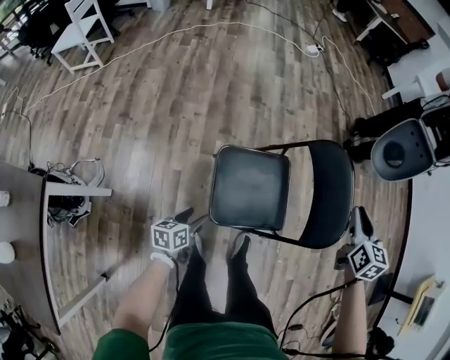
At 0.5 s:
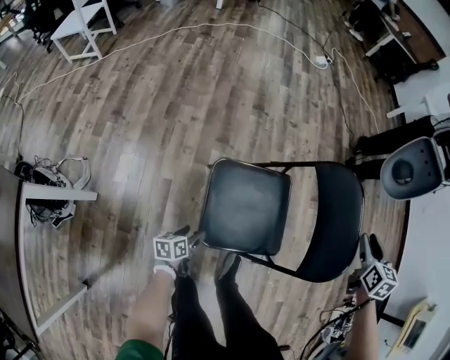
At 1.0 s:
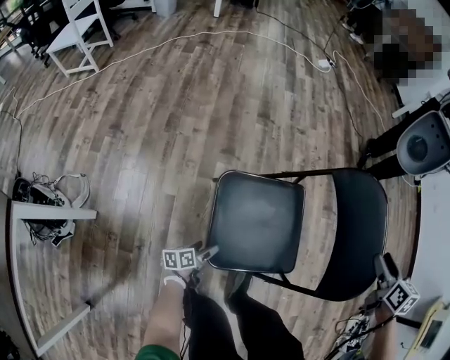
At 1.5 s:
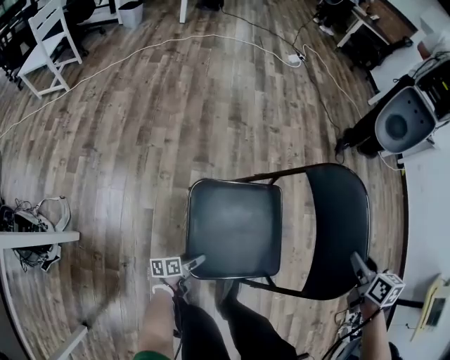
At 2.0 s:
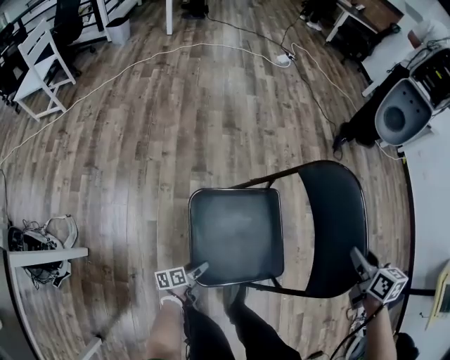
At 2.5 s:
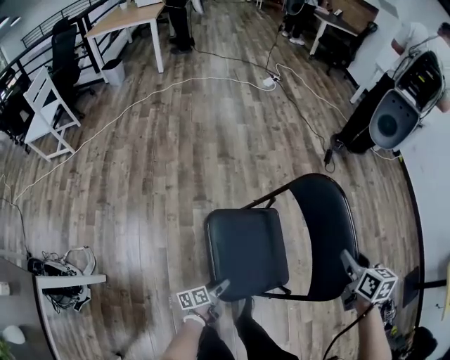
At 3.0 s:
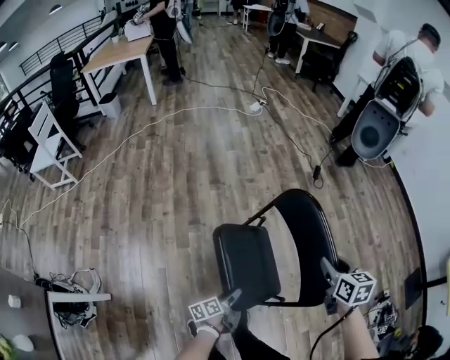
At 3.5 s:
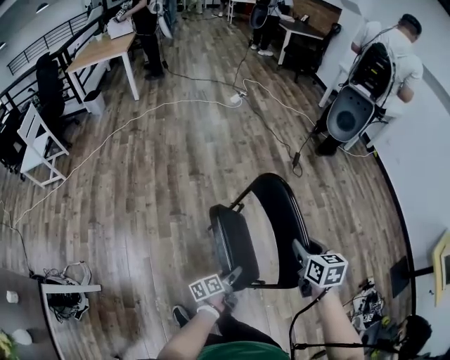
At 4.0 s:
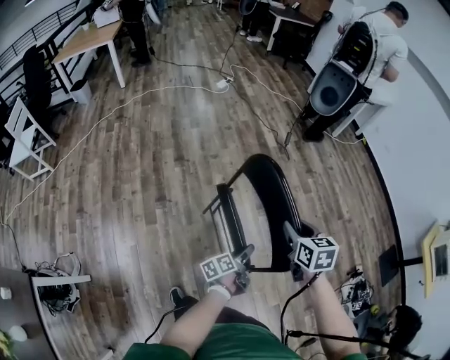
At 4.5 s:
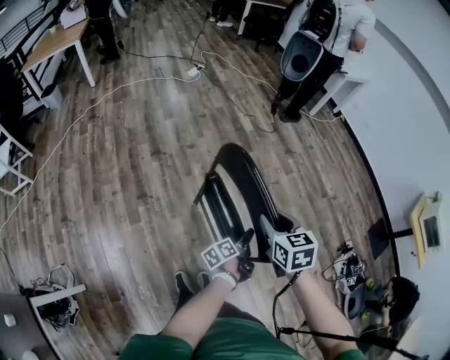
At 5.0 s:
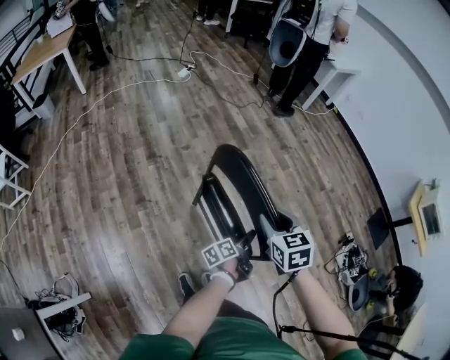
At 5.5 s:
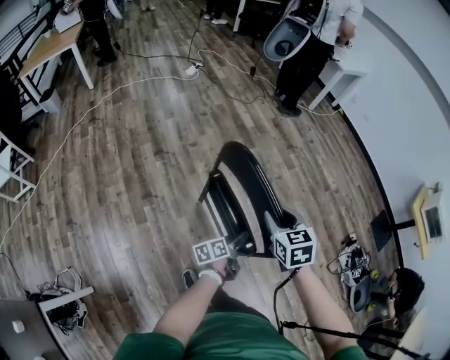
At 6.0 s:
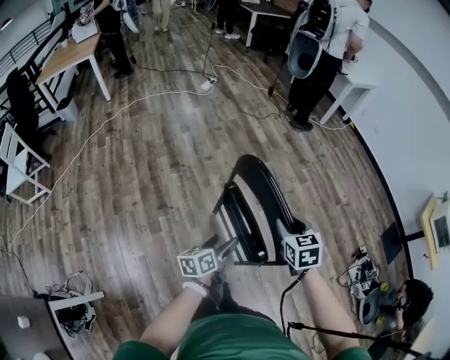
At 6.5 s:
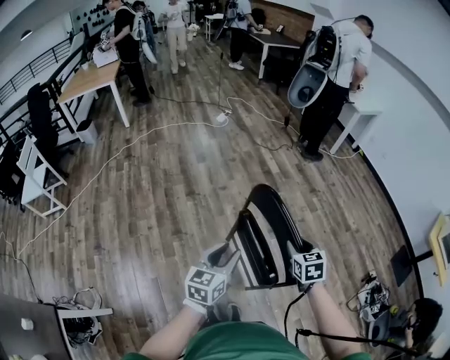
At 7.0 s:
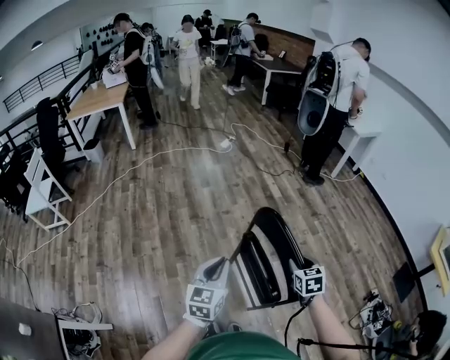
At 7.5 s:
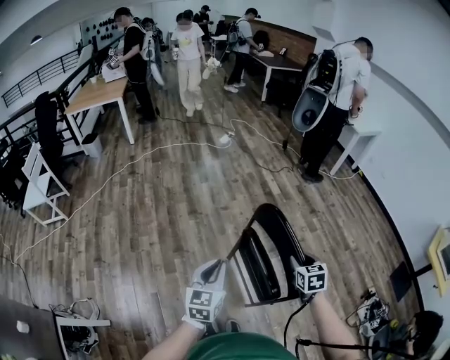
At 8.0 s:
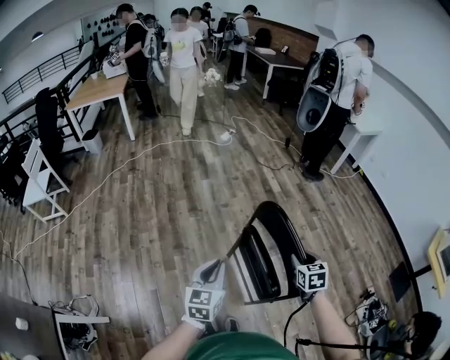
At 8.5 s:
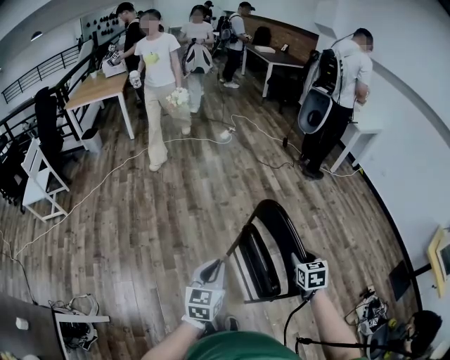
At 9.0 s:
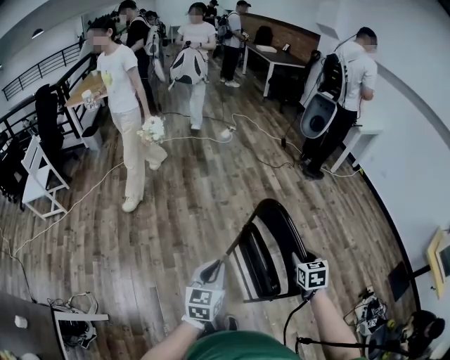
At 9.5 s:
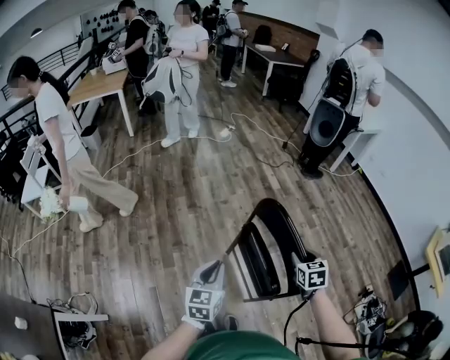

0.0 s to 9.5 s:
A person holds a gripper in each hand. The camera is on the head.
0.0 to 2.0 s: The left gripper travels downward by some 25 cm, and changes its angle by about 30 degrees. Meanwhile the right gripper heads downward and to the right, covering some 15 cm, rotates about 20 degrees, and opens, then closes once more.
2.0 to 4.0 s: The right gripper is displaced upward and to the right by about 20 cm; the left gripper goes some 50 cm to the right, upward and forward.
4.0 to 5.5 s: The grippers stay close to where they were, moving slightly.
5.5 to 7.5 s: The left gripper shifts approximately 35 cm upward and to the left, rotates around the line of its fingers by about 60 degrees, clockwise from behind, and closes its fingers.
7.5 to 9.5 s: The grippers make only small movements.

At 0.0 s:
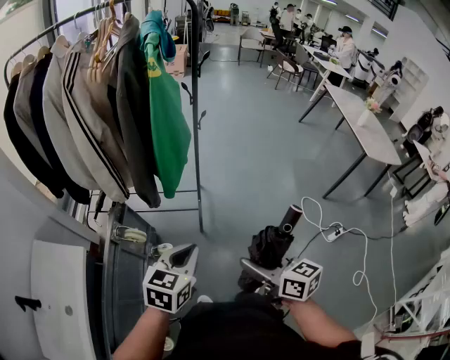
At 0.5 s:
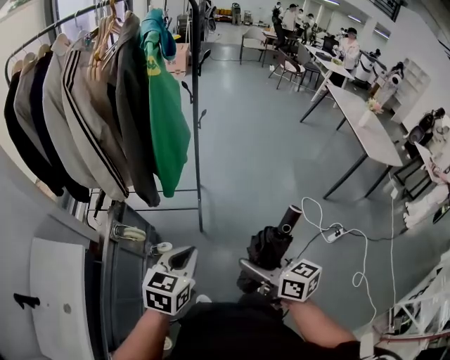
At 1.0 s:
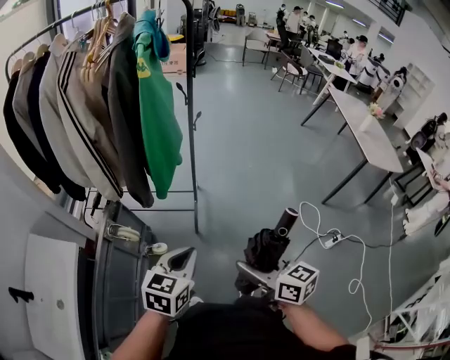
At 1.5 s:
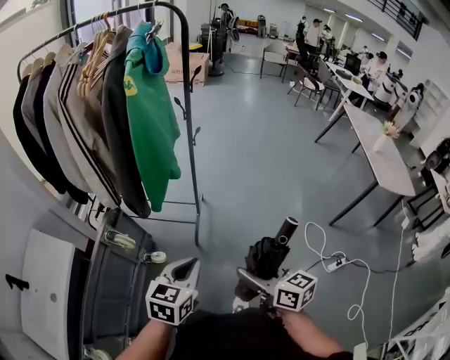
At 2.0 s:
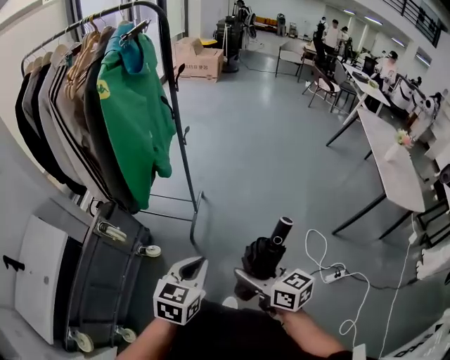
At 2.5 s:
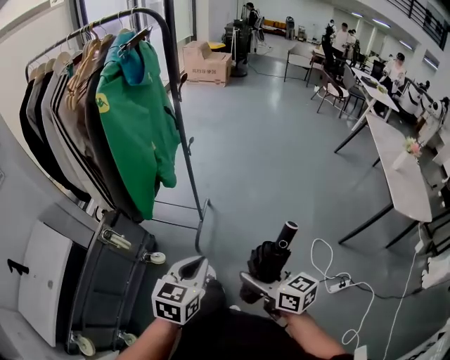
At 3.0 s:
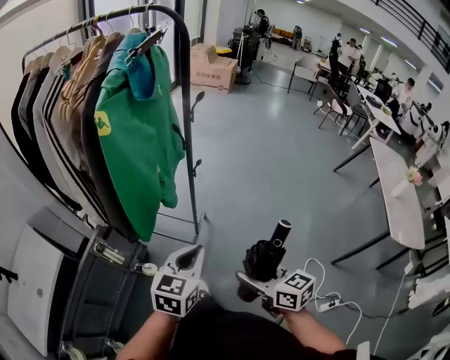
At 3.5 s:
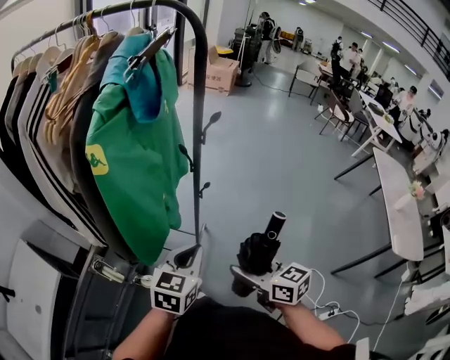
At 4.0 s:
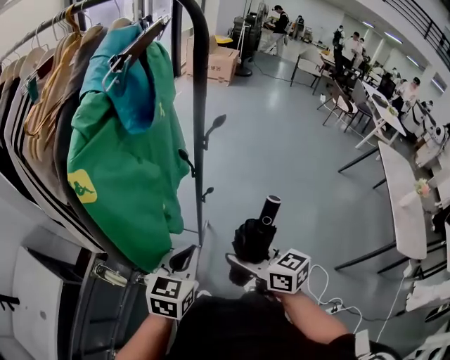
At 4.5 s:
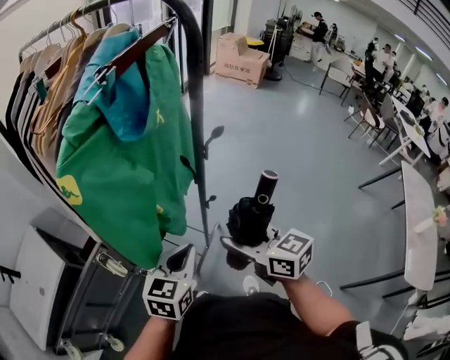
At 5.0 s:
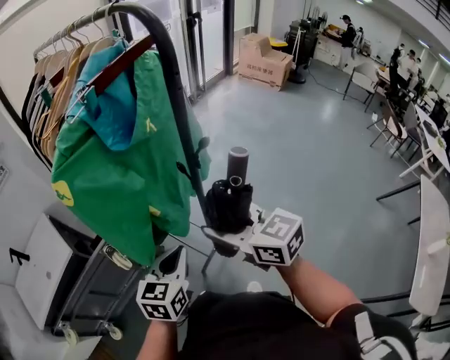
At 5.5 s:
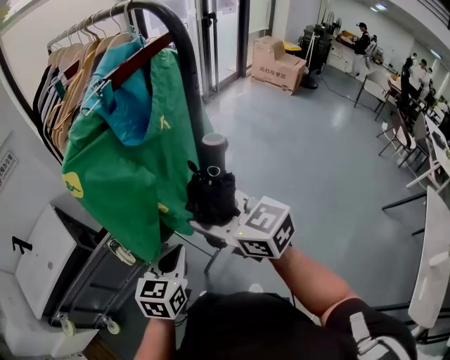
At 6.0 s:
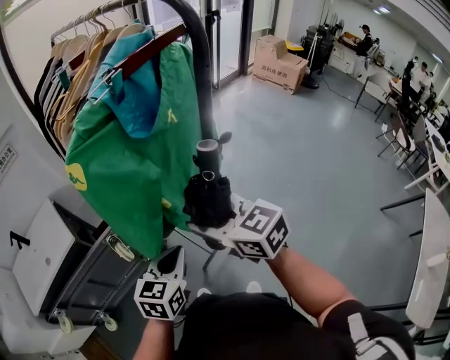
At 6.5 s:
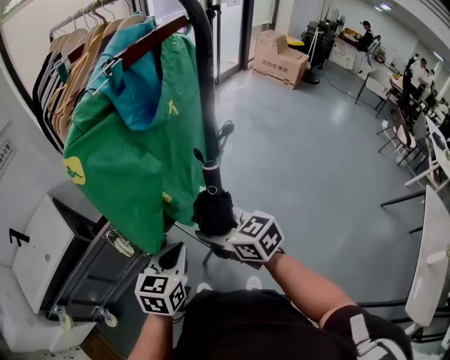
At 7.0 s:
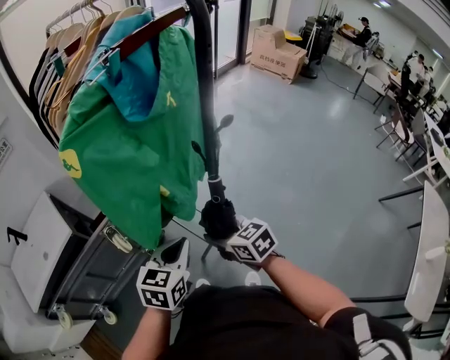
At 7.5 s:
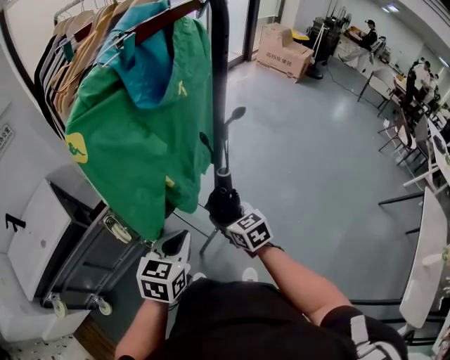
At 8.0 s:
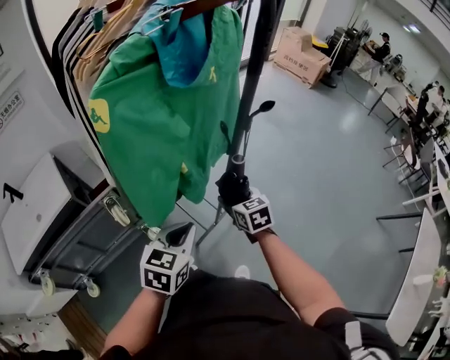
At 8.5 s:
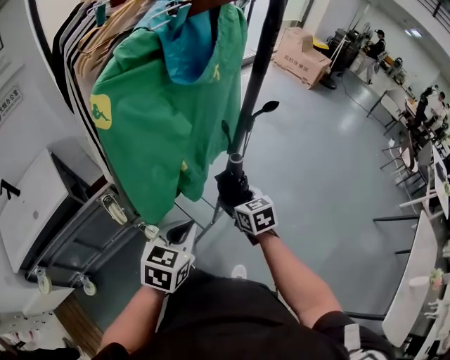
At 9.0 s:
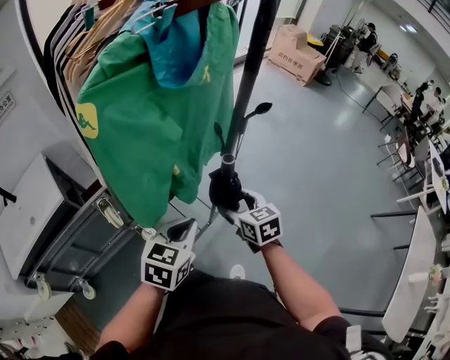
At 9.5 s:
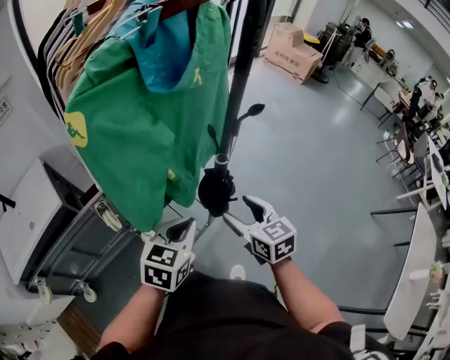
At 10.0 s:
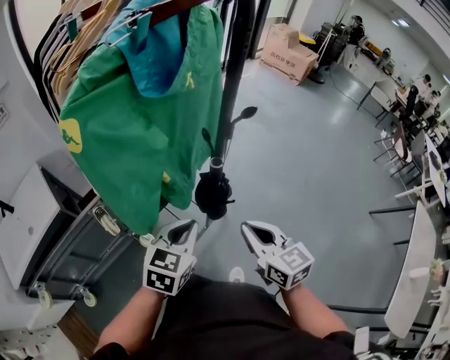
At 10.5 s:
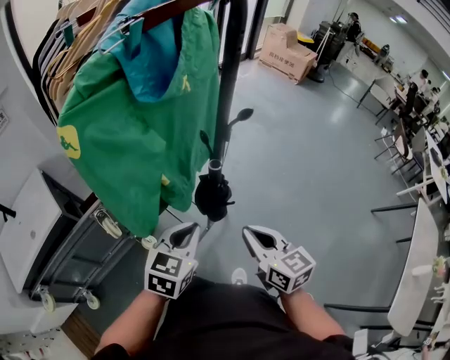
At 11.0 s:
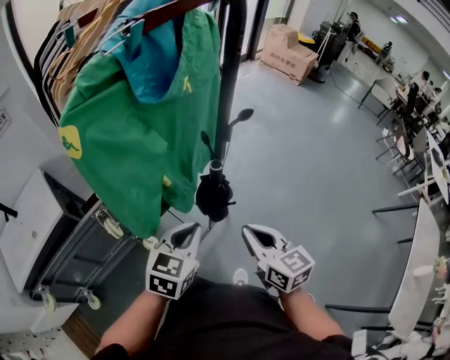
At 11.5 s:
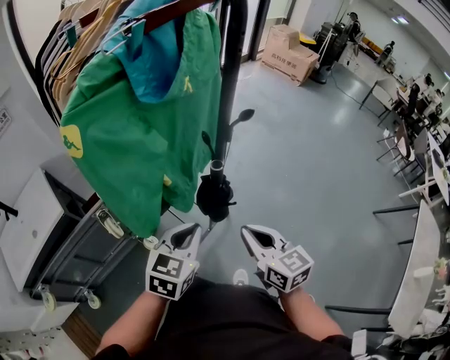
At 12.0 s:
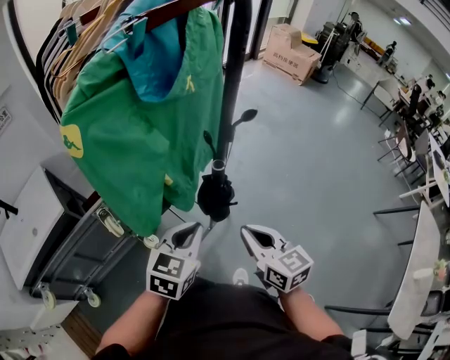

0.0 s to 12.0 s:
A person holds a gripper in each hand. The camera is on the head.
0.0 to 2.0 s: Both grippers move to the right, some 25 cm.
2.0 to 4.0 s: The two grippers go roughly 40 cm forward.
4.0 to 6.0 s: The right gripper shifts by some 15 cm, and rotates about 40 degrees. Meanwhile the left gripper rotates some 30 degrees.
6.0 to 8.0 s: The right gripper is displaced downward by approximately 20 cm, and changes its angle by about 30 degrees.
8.0 to 10.0 s: The left gripper moves some 5 cm; the right gripper travels upward, backward and to the right by about 15 cm, and closes up.
10.0 to 12.0 s: Neither gripper changes place.

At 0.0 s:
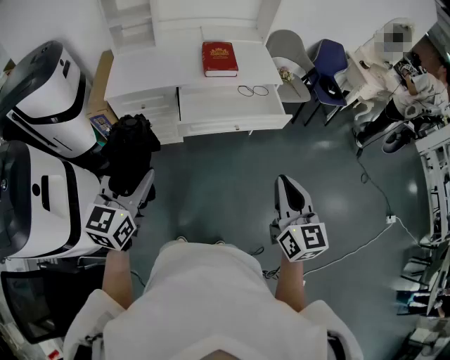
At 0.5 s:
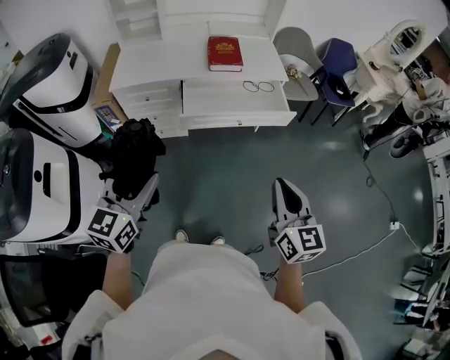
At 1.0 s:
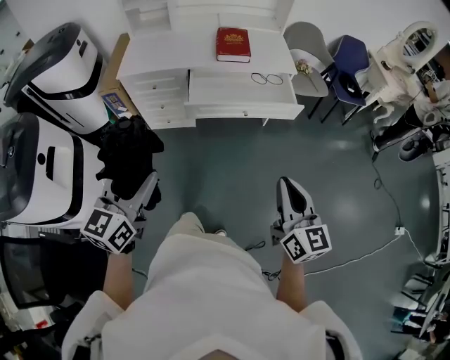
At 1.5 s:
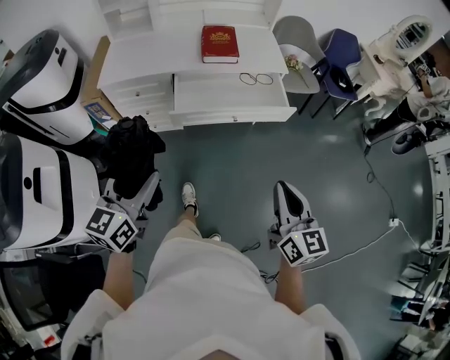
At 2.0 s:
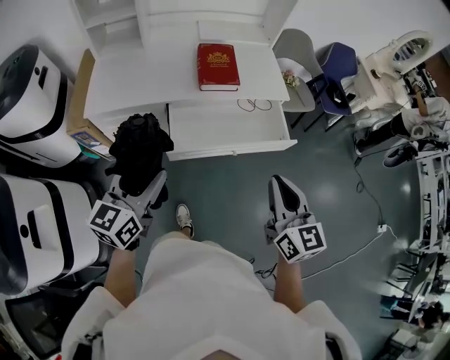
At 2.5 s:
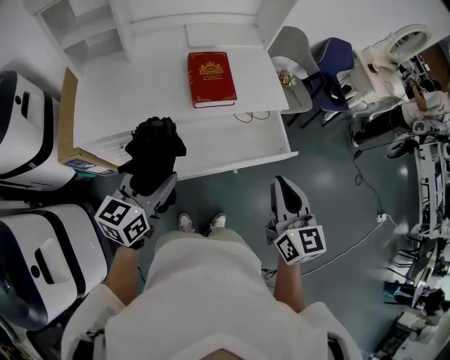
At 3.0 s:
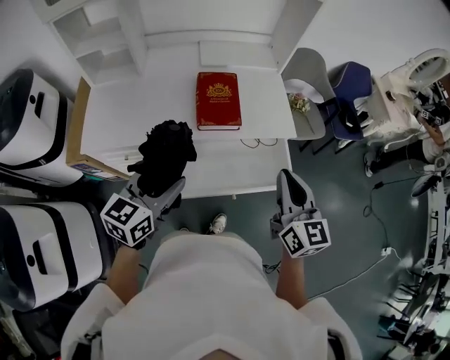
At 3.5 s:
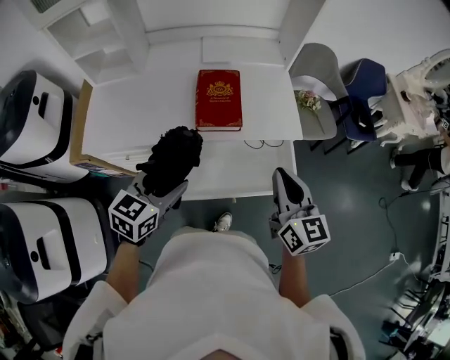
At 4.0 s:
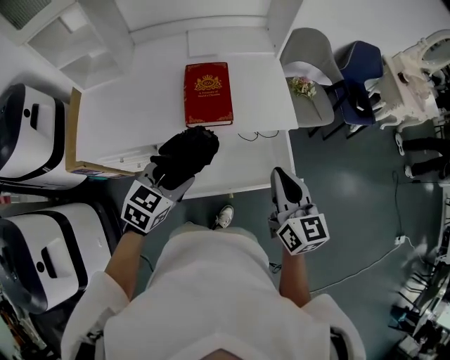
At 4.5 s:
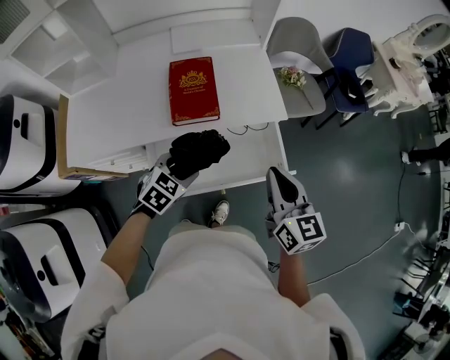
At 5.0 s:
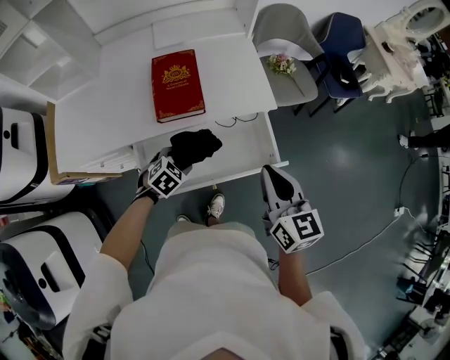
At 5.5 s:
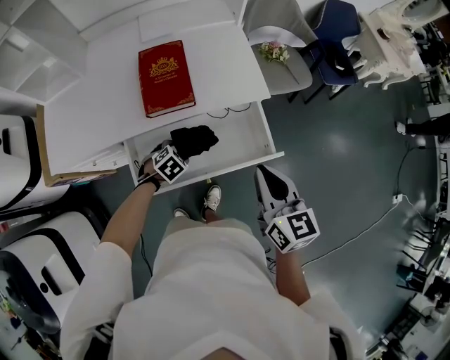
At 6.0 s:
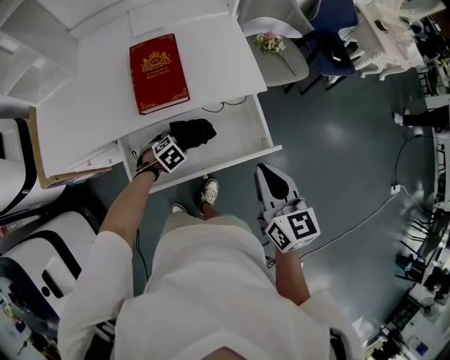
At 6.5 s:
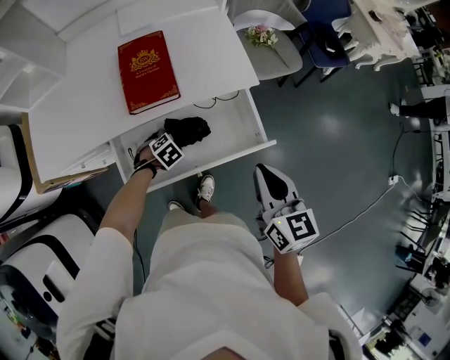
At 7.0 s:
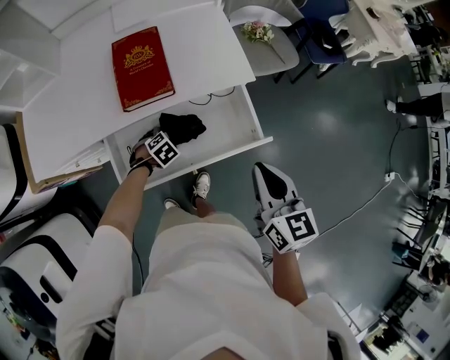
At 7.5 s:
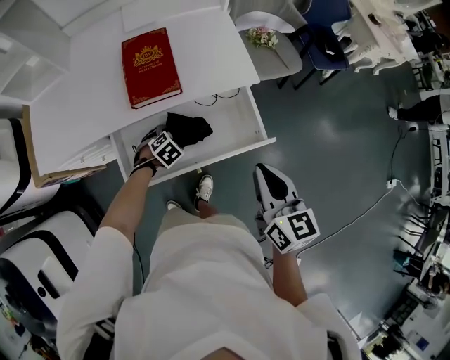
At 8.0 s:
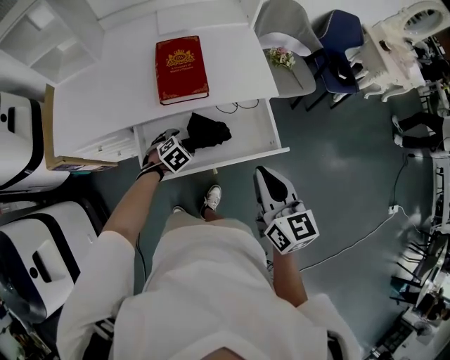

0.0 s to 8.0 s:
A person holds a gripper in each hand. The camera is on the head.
0.0 to 2.0 s: The grippers both shift forward by roughly 20 cm.
2.0 to 4.0 s: The right gripper shifts approximately 25 cm forward. Meanwhile the left gripper travels forward and to the right by approximately 25 cm, and swivels roughly 30 degrees.
4.0 to 6.0 s: The left gripper heads downward, covering about 30 cm, and tips its fingers downward by approximately 40 degrees, while the right gripper is displaced to the right and downward by roughly 10 cm.
6.0 to 8.0 s: The right gripper moves about 5 cm. The left gripper changes place by about 5 cm.
